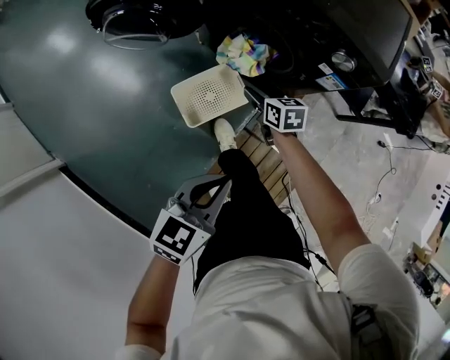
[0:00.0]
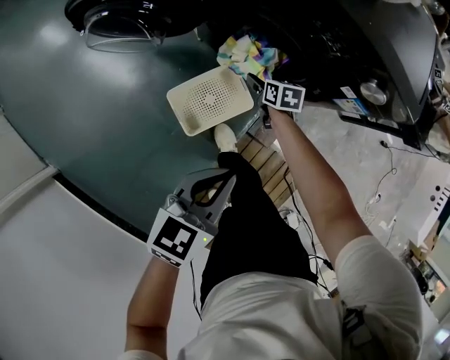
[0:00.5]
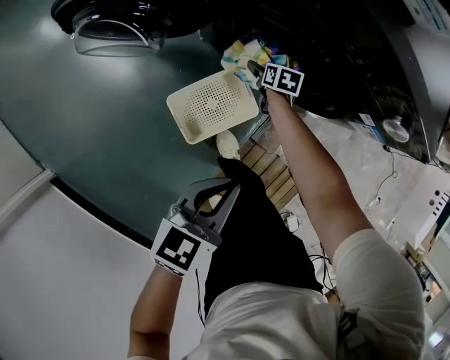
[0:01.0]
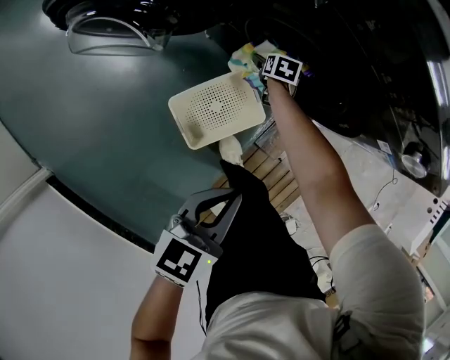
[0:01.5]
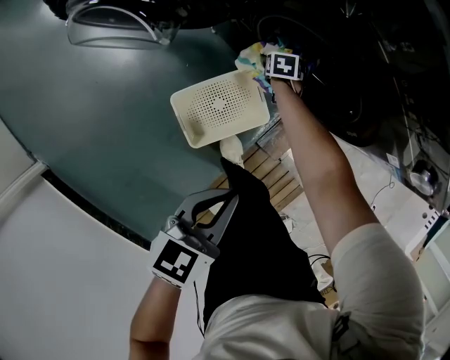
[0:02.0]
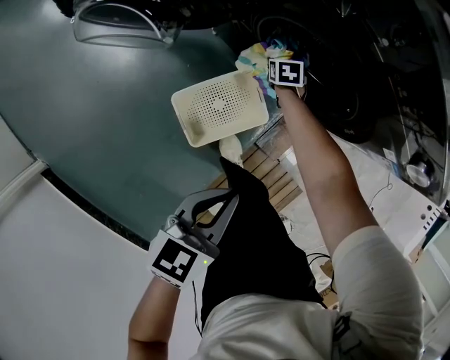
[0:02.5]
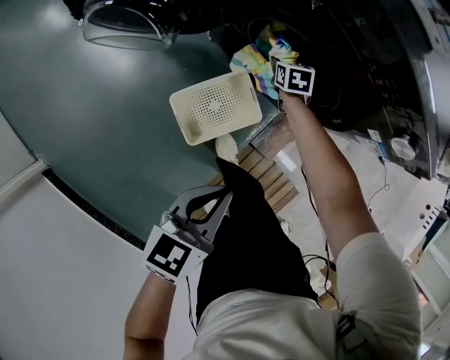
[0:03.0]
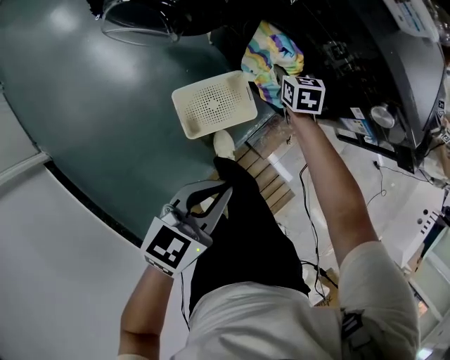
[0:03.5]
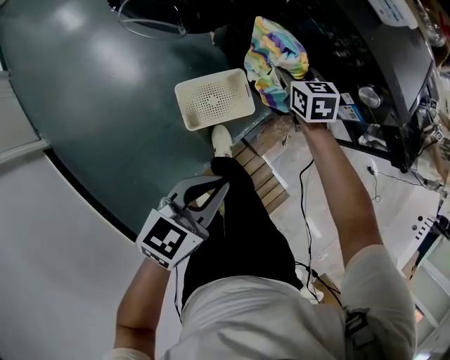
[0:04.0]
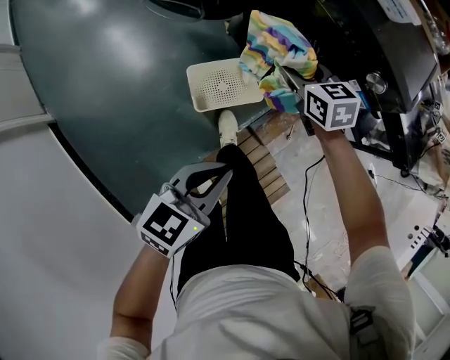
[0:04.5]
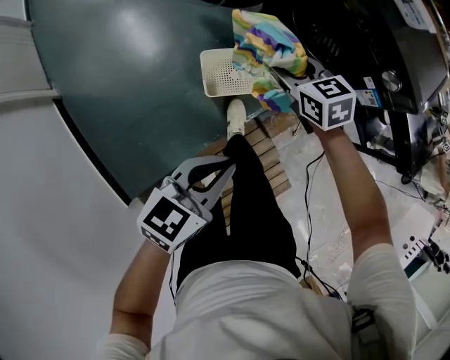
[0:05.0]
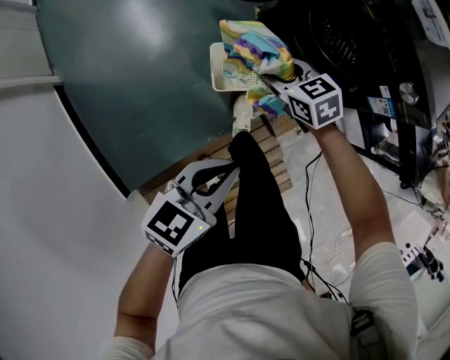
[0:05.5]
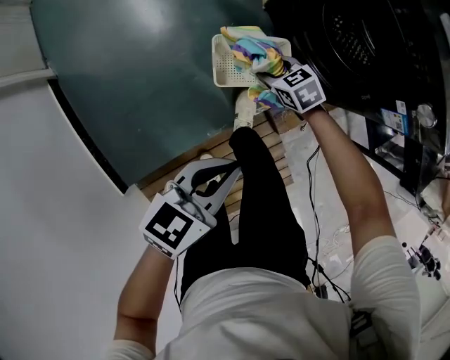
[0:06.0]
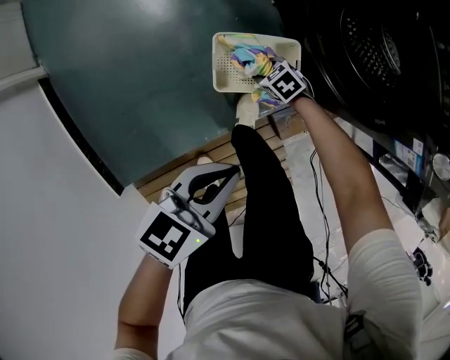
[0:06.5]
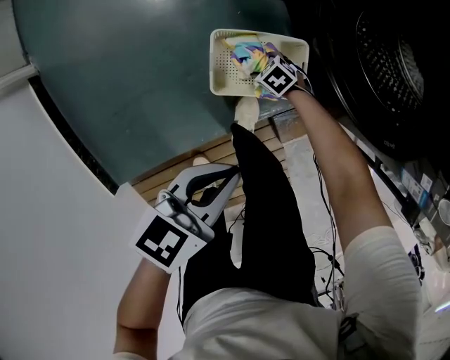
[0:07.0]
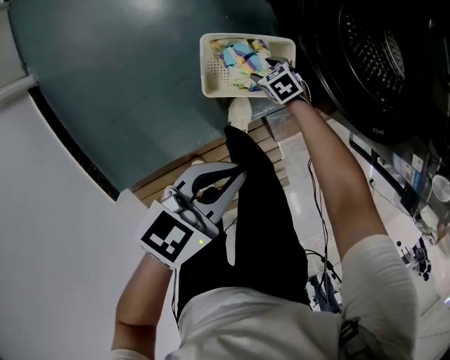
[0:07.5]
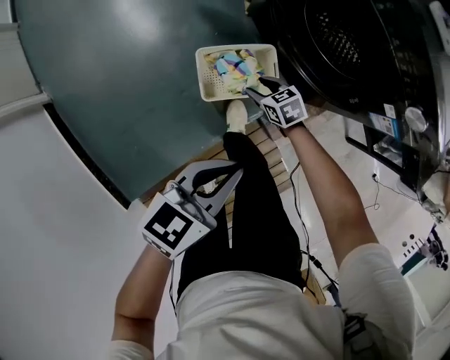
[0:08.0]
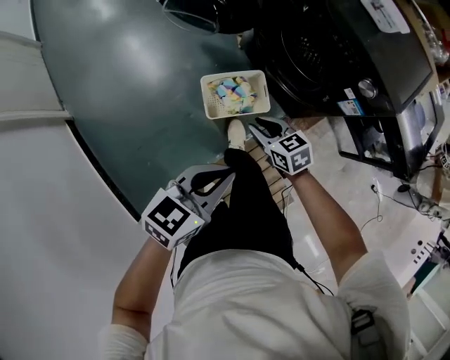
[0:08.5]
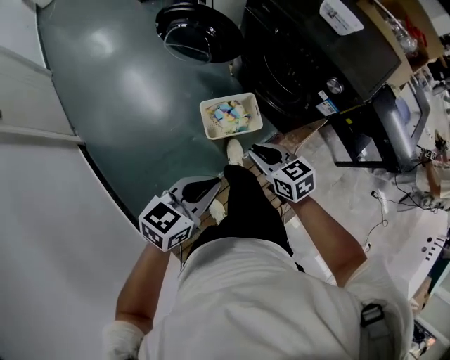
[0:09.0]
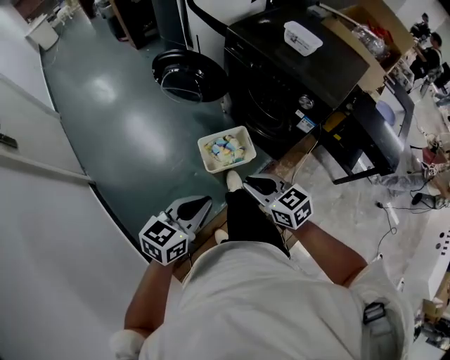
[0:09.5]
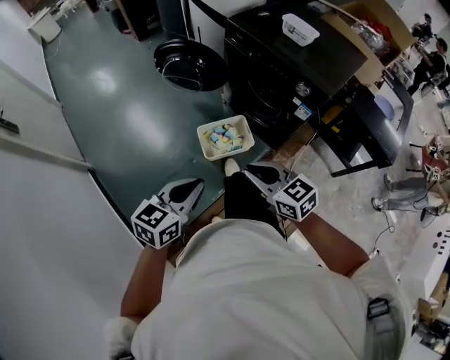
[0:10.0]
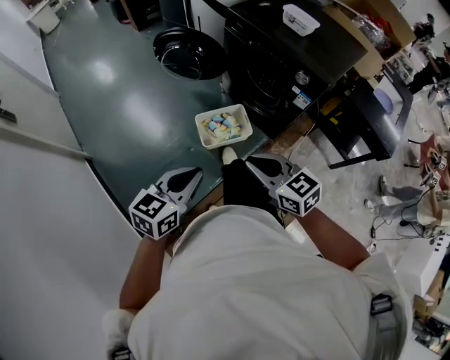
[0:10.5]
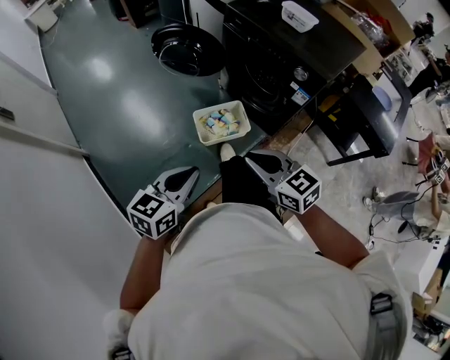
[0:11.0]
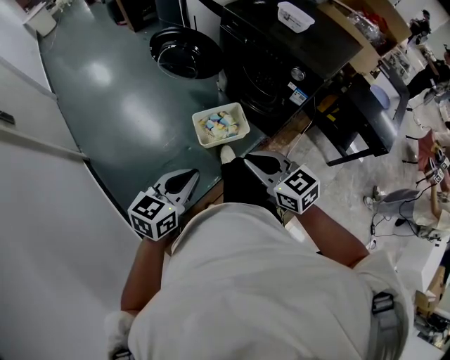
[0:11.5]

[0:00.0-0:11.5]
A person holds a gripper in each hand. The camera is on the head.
0:00.0 to 0:02.0: The right gripper goes approximately 40 cm downward and forward, and changes its angle by some 30 degrees. Meanwhile the left gripper heads downward, forward and to the left, covering about 25 cm.
0:02.0 to 0:04.0: The right gripper is displaced upward and backward by roughly 40 cm, swivels approximately 30 degrees, and closes. Meanwhile the left gripper shifts roughly 20 cm upward, backward and to the right.
0:04.0 to 0:06.0: The right gripper changes place by some 25 cm, and changes its angle by approximately 40 degrees, while the left gripper moves some 10 cm.
0:06.0 to 0:07.5: The left gripper ends up roughly 15 cm from where it was. Meanwhile the right gripper is displaced downward by some 20 cm.
0:07.5 to 0:09.5: The right gripper travels upward by about 60 cm, points its fingers roughly 40 degrees further upward, and closes; the left gripper is displaced upward by roughly 30 cm, and rotates some 20 degrees.
0:09.5 to 0:11.5: The right gripper moves backward and upward, roughly 10 cm.

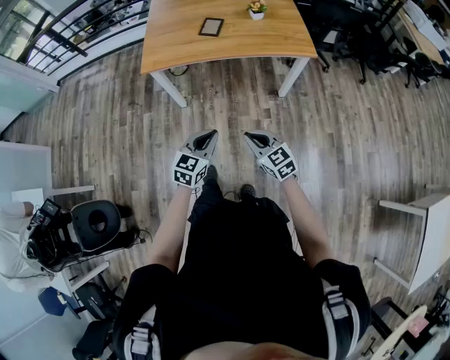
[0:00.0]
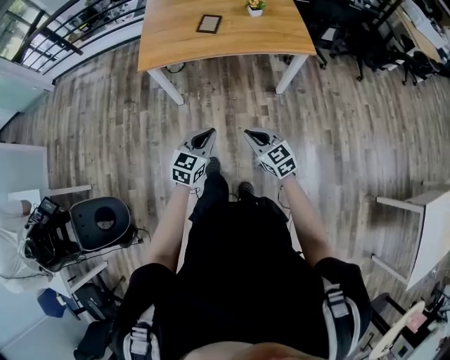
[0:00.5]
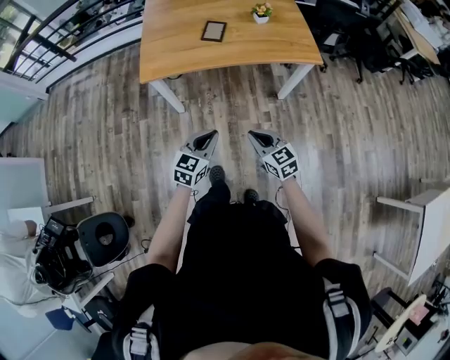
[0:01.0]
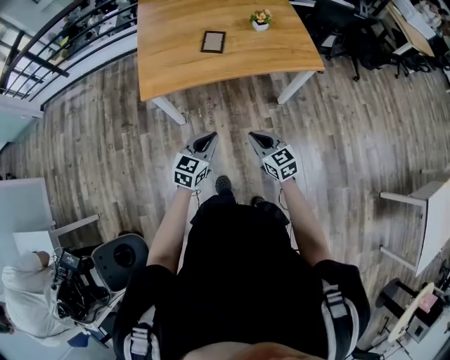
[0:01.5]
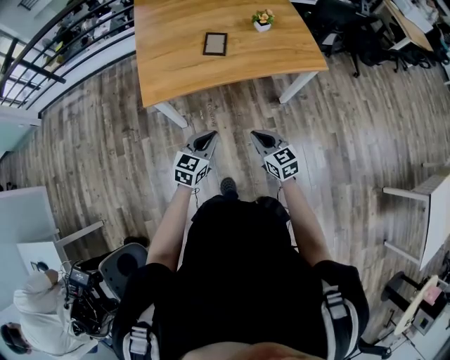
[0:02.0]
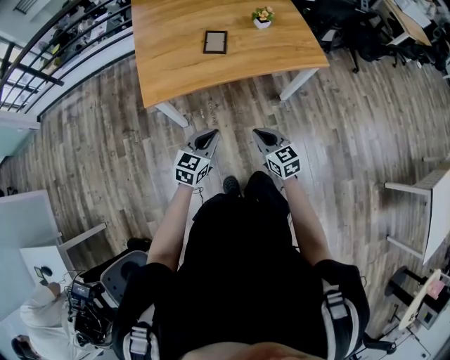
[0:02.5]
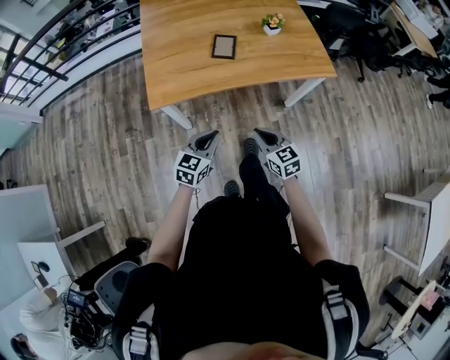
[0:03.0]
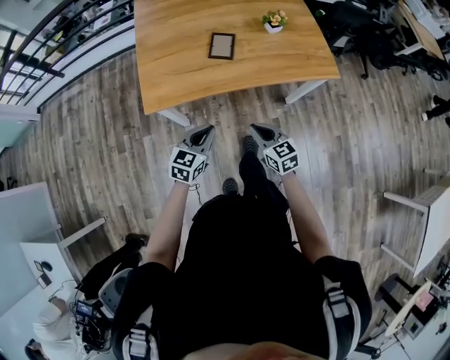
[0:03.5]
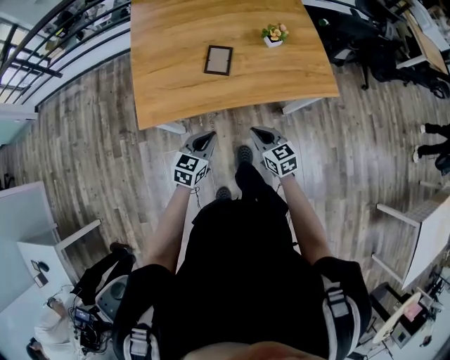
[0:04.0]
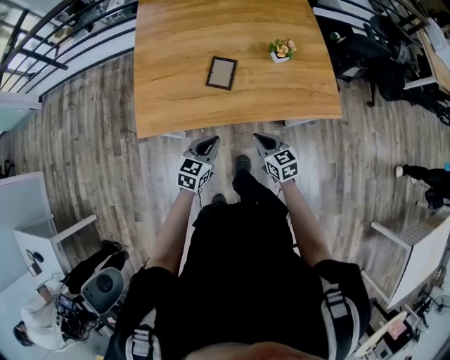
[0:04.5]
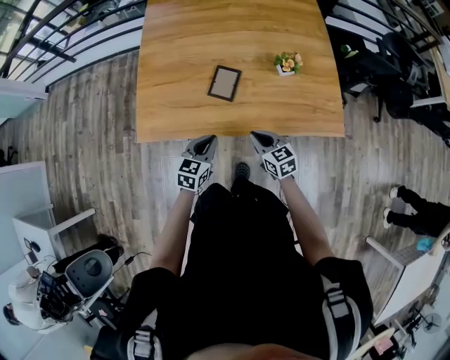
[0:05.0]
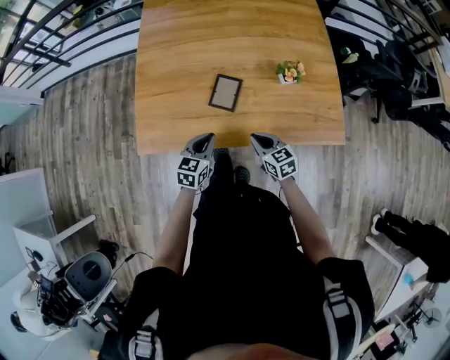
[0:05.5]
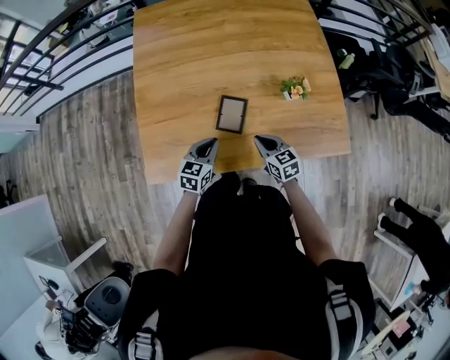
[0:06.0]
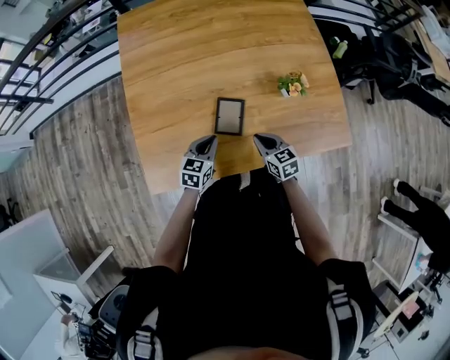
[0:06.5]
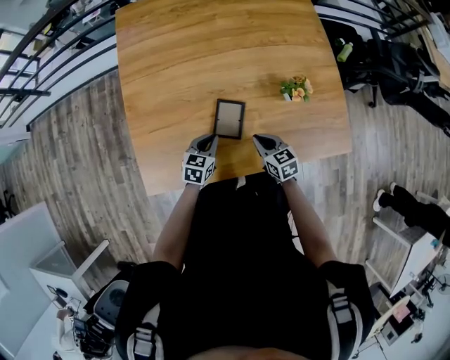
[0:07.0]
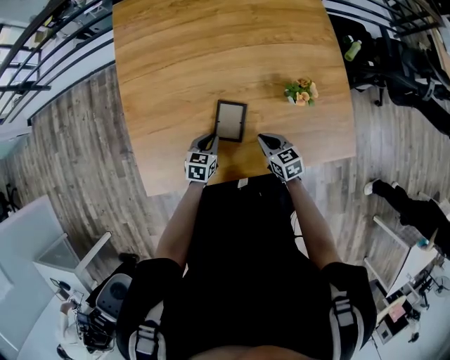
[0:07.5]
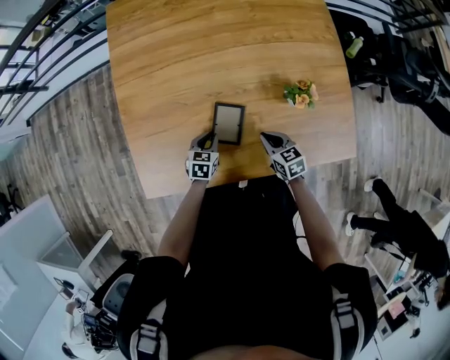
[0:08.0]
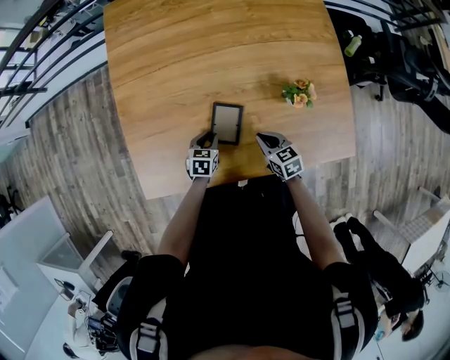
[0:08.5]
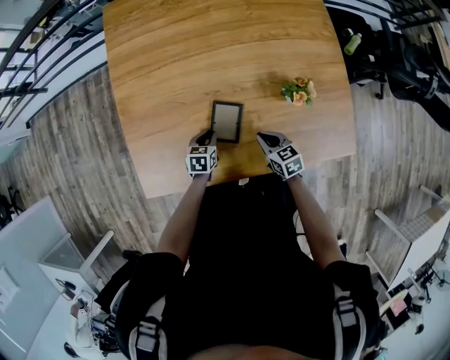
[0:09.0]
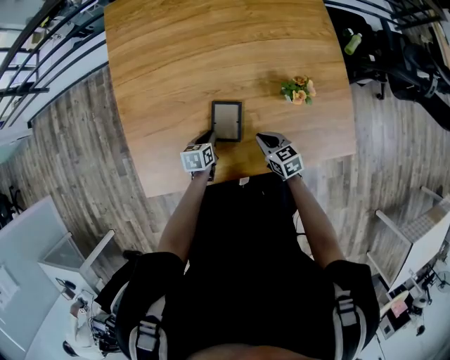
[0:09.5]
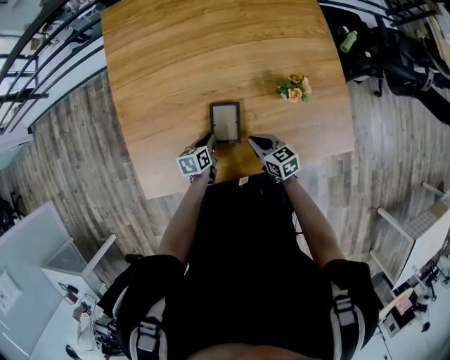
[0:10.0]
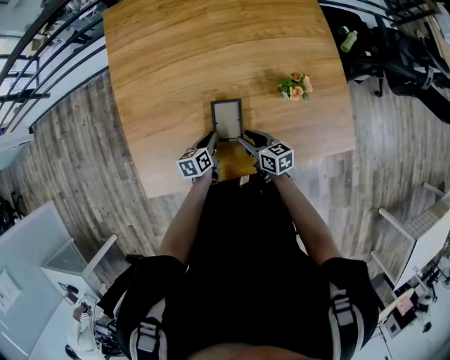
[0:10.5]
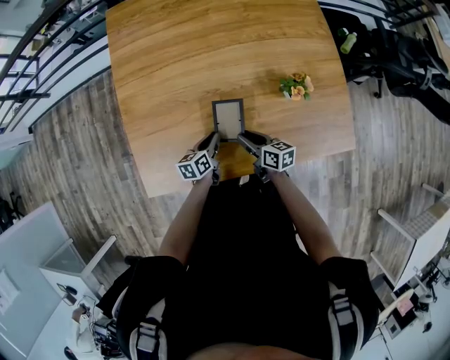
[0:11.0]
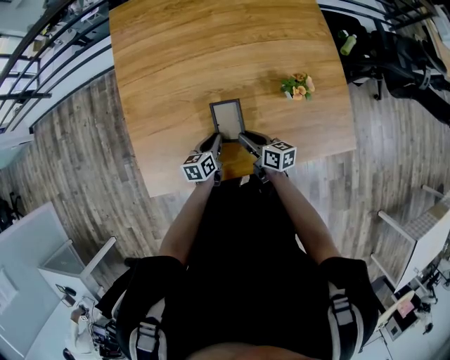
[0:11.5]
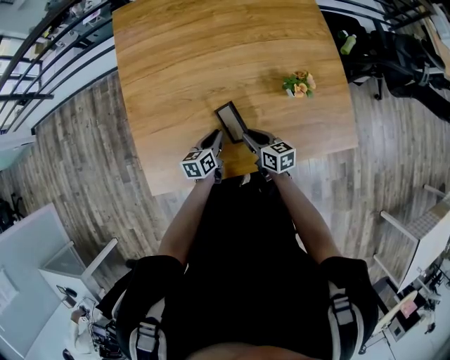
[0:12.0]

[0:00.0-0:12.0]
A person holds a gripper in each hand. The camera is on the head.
0:00.0 to 0:02.0: The two grippers go approximately 20 cm forward and to the left.
0:02.0 to 0:04.0: The two grippers go about 15 cm forward.
0:04.0 to 0:06.0: Both grippers travel together forward, some 25 cm.
0:06.0 to 0:08.0: The right gripper is displaced forward and downward by roughly 10 cm. The left gripper shifts some 15 cm downward and forward.
0:08.0 to 0:10.0: The left gripper turns by about 30 degrees.
0:10.0 to 0:12.0: The right gripper opens and closes again. The left gripper shifts roughly 5 cm upward.

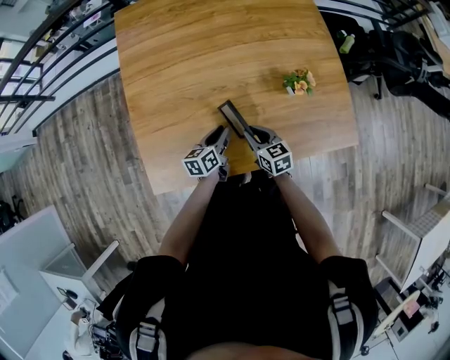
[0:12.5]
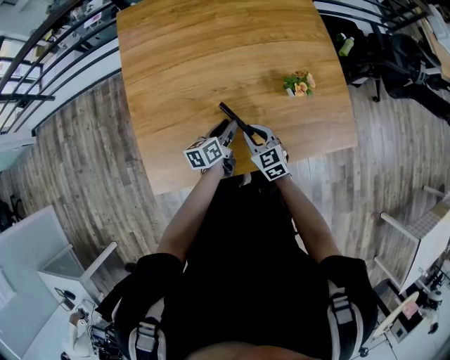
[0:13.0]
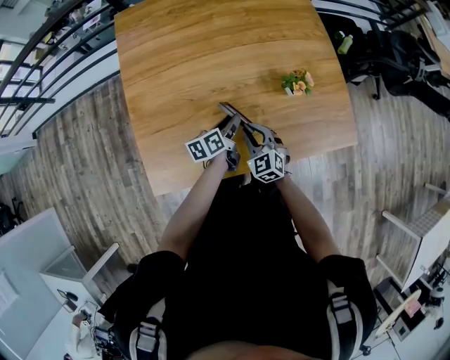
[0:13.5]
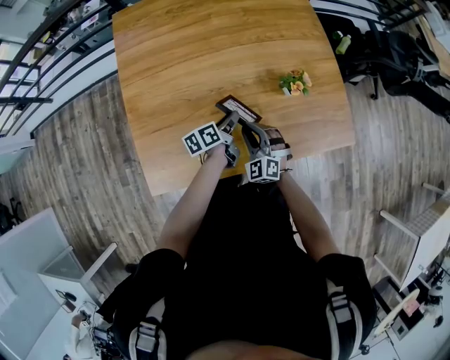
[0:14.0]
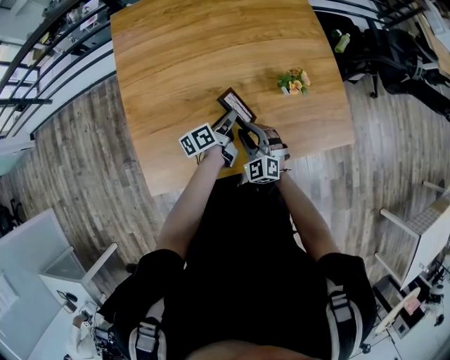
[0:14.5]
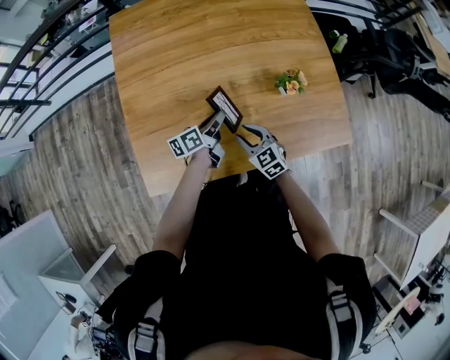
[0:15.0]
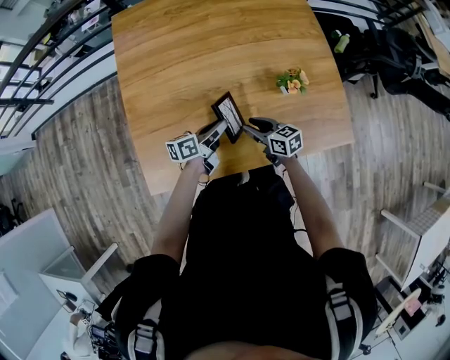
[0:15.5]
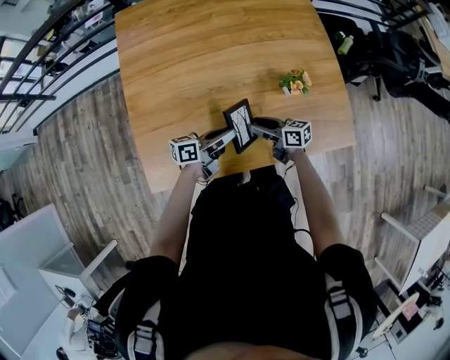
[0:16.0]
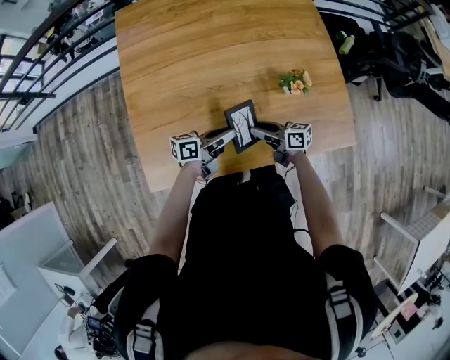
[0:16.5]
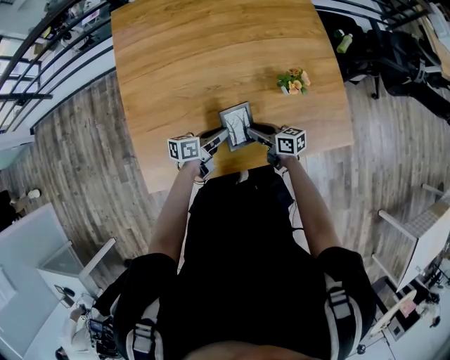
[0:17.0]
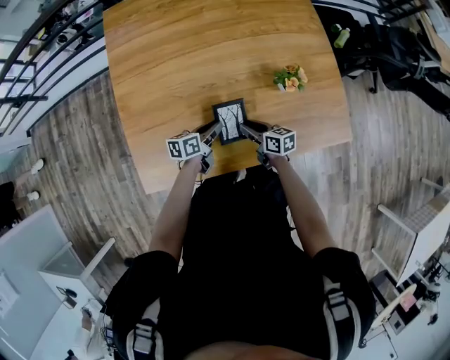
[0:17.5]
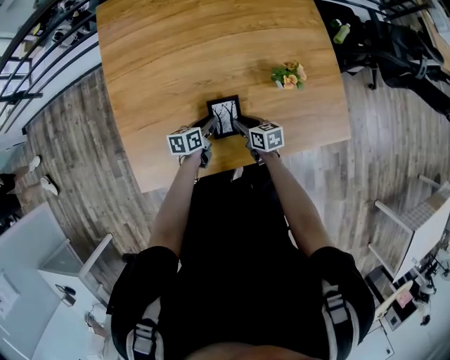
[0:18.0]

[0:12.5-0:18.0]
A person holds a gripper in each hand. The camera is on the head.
0:12.5 to 0:14.5: The right gripper rolls counterclockwise, seen from behind, by approximately 50 degrees. The left gripper heads forward, covering approximately 5 cm, and rotates about 30 degrees.
0:14.5 to 0:16.0: The left gripper shifts approximately 5 cm backward, and swivels approximately 30 degrees. The right gripper ends up about 5 cm from where it was, and rotates around the line of its fingers by about 70 degrees, clockwise from behind.
0:16.0 to 0:18.0: The right gripper goes approximately 10 cm downward, and changes its angle by roughly 30 degrees. Meanwhile the left gripper heads downward, covering about 15 cm, and points its fingers about 30 degrees further downward.
